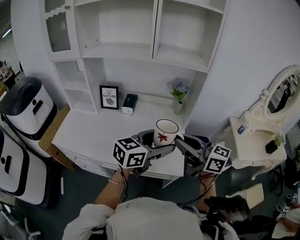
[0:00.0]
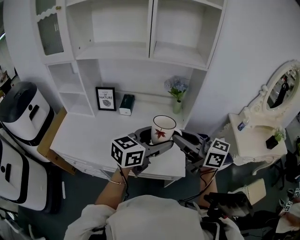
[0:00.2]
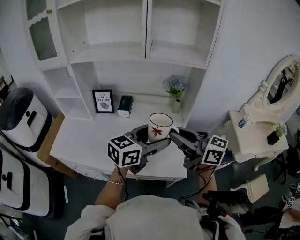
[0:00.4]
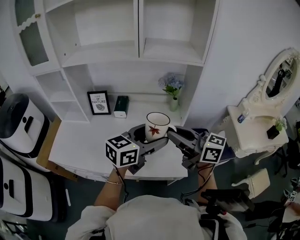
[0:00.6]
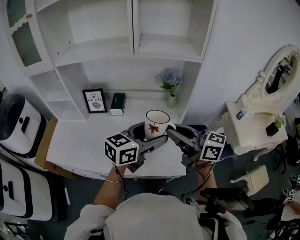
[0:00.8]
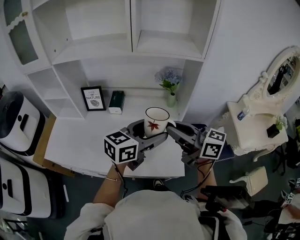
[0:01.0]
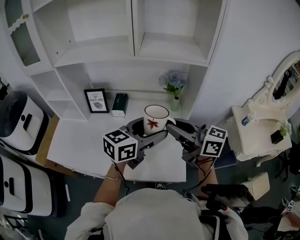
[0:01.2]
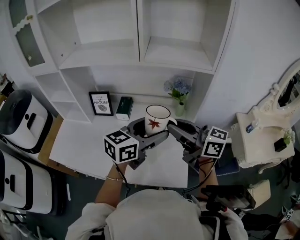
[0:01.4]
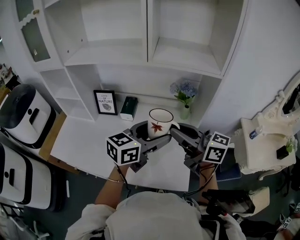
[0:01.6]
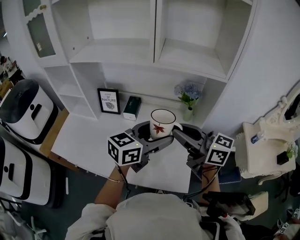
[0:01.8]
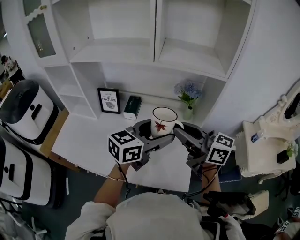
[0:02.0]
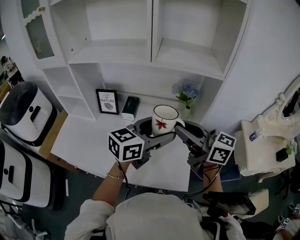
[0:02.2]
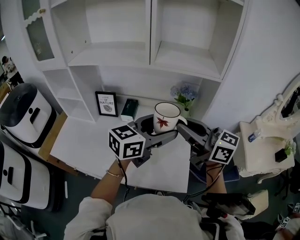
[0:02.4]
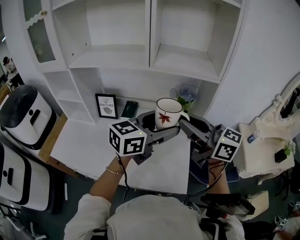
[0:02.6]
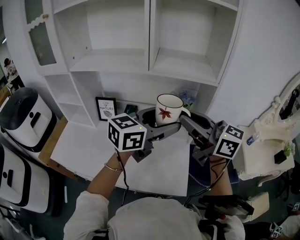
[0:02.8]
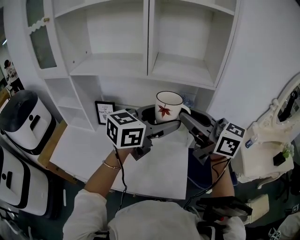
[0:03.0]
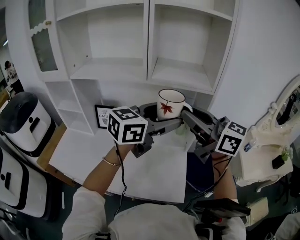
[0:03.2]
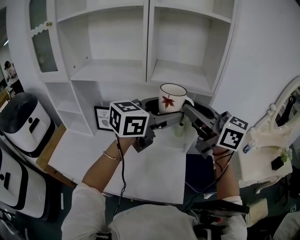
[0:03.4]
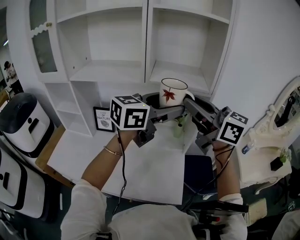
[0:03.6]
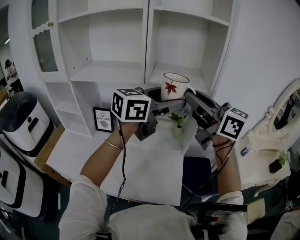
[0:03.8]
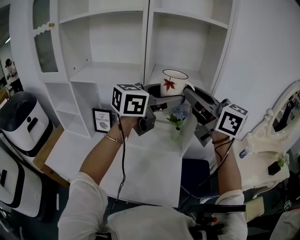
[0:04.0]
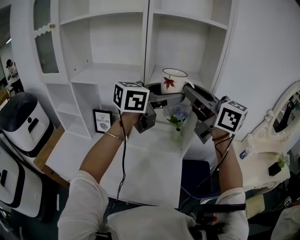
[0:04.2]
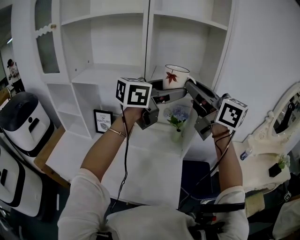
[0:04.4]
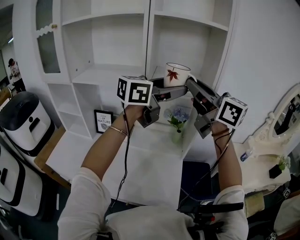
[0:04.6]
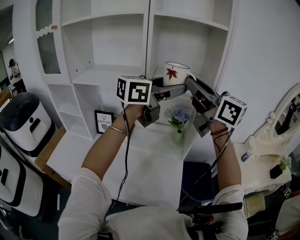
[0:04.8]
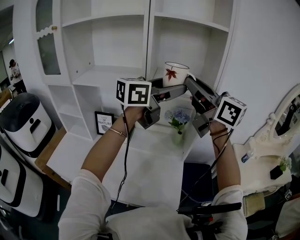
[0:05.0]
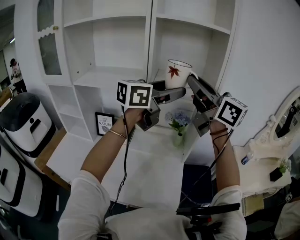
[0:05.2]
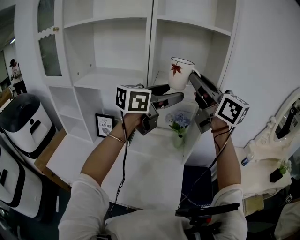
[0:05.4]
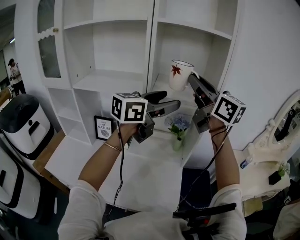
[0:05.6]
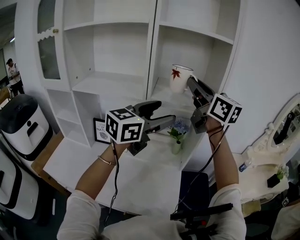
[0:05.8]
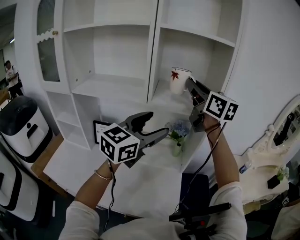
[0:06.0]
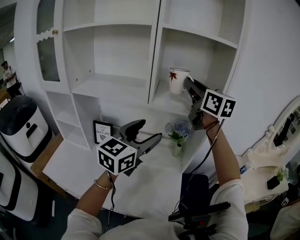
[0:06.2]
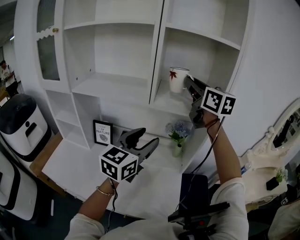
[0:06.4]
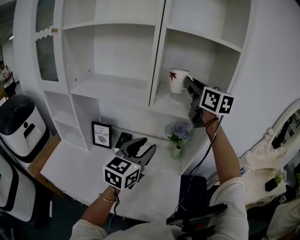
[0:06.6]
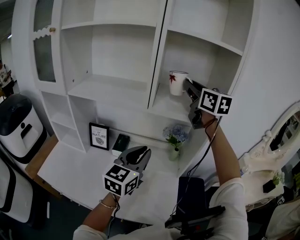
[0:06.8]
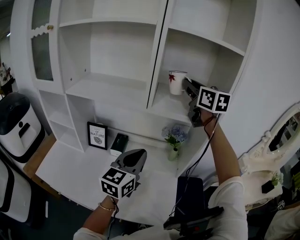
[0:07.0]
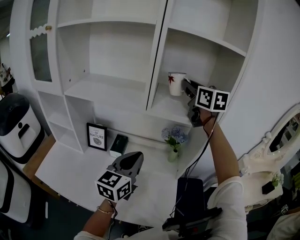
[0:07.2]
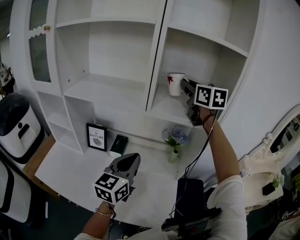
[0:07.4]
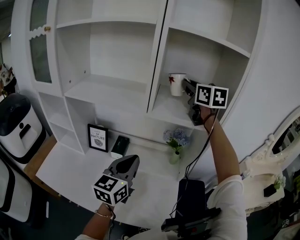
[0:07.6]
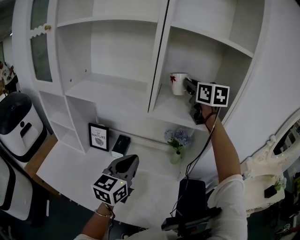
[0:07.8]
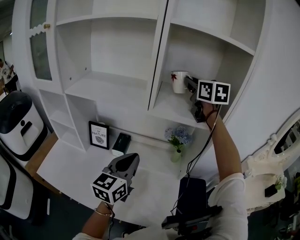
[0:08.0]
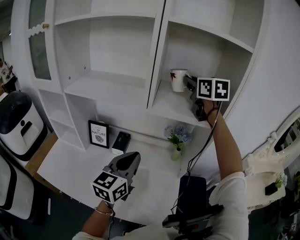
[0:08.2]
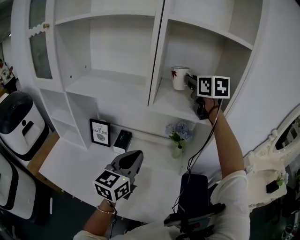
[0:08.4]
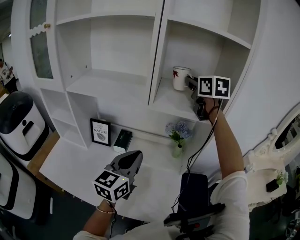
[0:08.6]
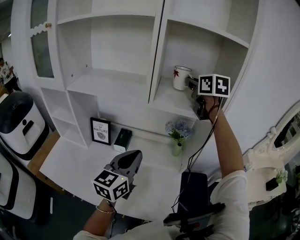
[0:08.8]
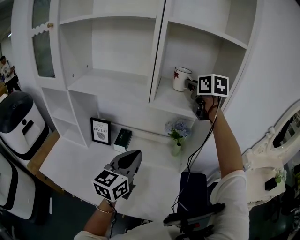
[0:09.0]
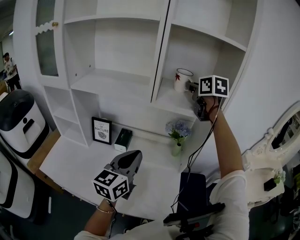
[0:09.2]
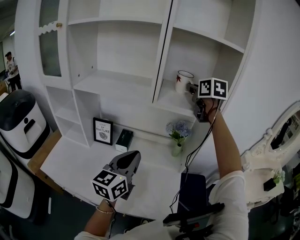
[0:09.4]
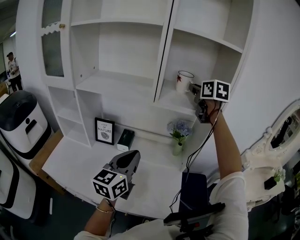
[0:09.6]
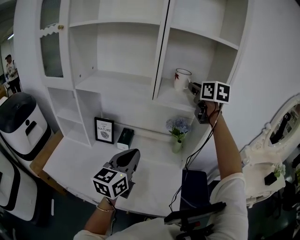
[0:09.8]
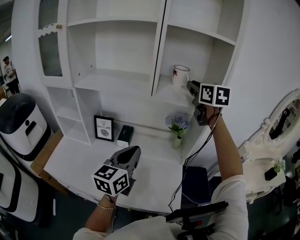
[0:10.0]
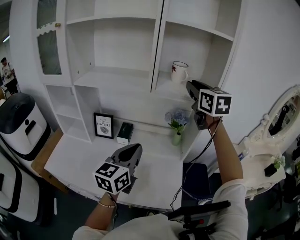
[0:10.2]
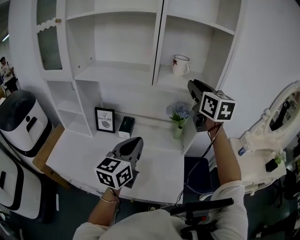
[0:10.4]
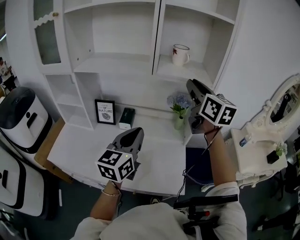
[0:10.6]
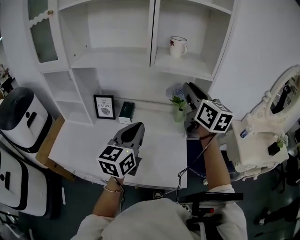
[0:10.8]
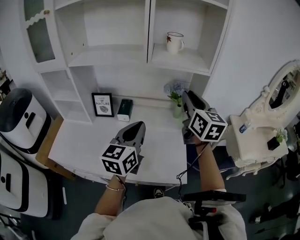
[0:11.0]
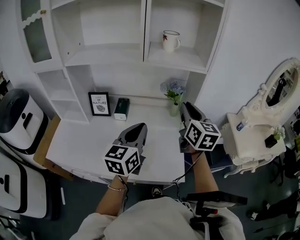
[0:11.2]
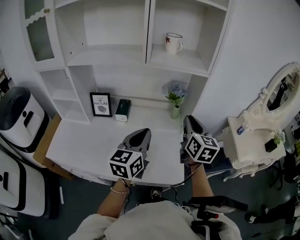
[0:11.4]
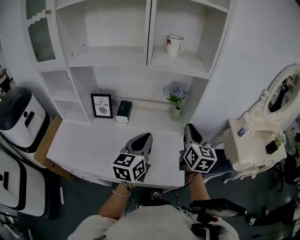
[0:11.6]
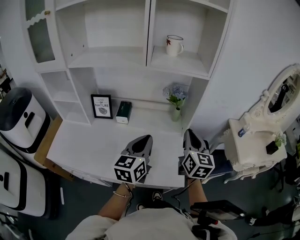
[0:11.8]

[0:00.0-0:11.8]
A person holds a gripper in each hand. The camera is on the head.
0:00.0 to 0:01.4: Both grippers travel together forward, roughly 15 cm.
0:01.4 to 0:03.0: The grippers both shift upward by some 10 cm.
0:03.0 to 0:04.4: Both grippers travel together upward and forward, approximately 15 cm.
0:04.4 to 0:06.0: The right gripper is displaced forward by roughly 10 cm. Meanwhile the left gripper is displaced downward and to the left by approximately 10 cm, and swivels roughly 20 degrees.
0:06.0 to 0:07.4: The left gripper shifts roughly 15 cm downward and to the left, turns by approximately 20 degrees, and closes its fingers, while the right gripper travels forward by approximately 10 cm.
0:07.4 to 0:08.8: The grippers make only small movements.
0:08.8 to 0:10.4: The right gripper heads backward, covering approximately 15 cm. The left gripper heads backward, covering some 5 cm.
0:10.4 to 0:11.8: The left gripper heads downward and to the right, covering about 10 cm. The right gripper travels downward and backward by approximately 25 cm.

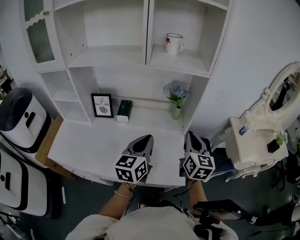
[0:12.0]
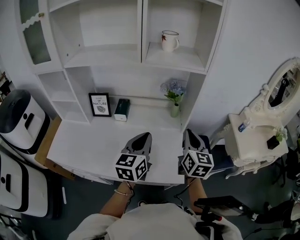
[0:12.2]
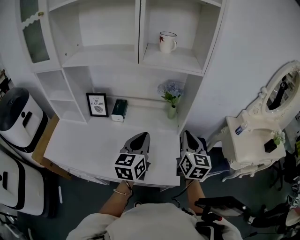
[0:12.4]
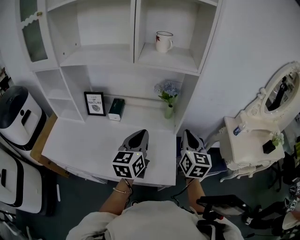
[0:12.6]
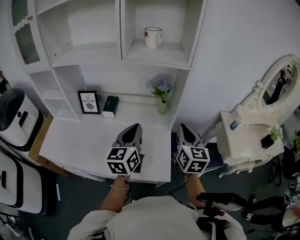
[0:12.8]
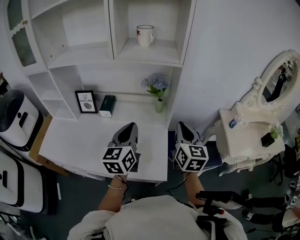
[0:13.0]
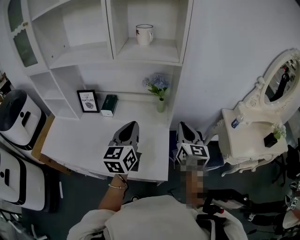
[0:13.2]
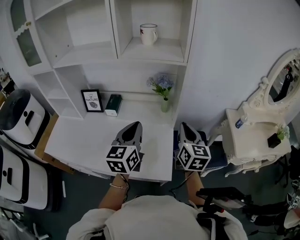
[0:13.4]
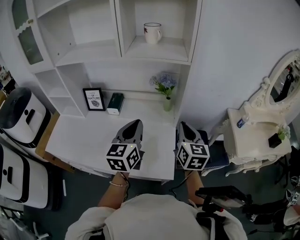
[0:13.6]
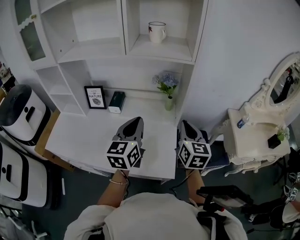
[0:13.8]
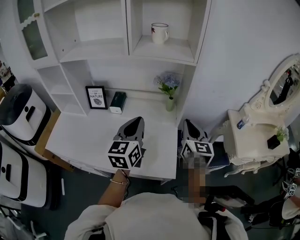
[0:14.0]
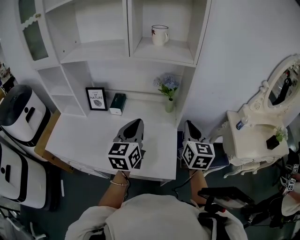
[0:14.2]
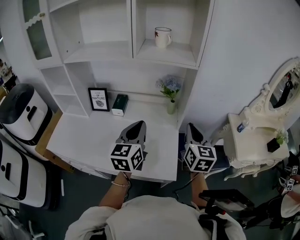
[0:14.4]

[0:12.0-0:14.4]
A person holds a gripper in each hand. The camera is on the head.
0:12.0 to 0:13.2: Both grippers travel together to the right, approximately 5 cm.
0:13.2 to 0:14.4: There are only small adjustments of the grippers.

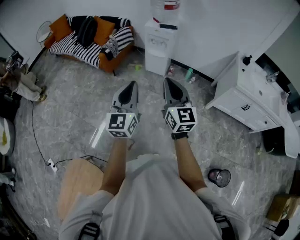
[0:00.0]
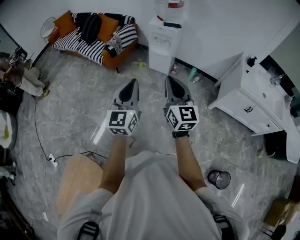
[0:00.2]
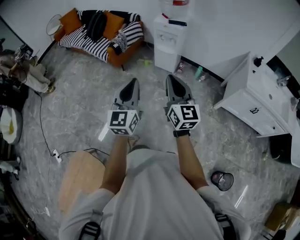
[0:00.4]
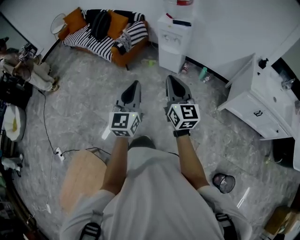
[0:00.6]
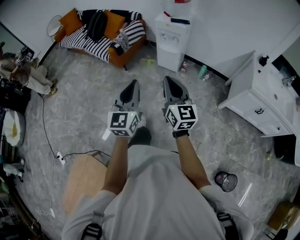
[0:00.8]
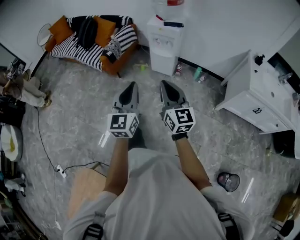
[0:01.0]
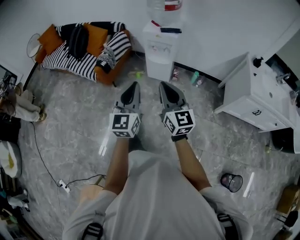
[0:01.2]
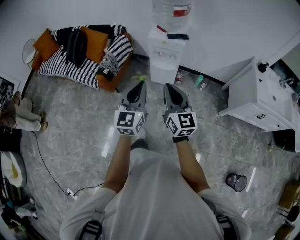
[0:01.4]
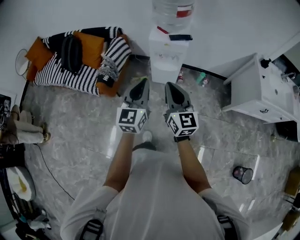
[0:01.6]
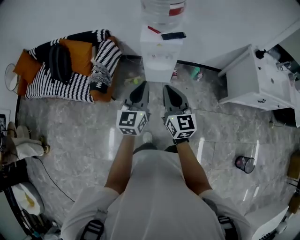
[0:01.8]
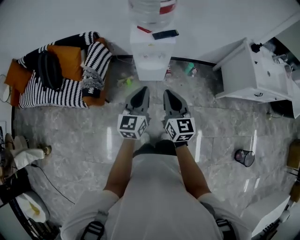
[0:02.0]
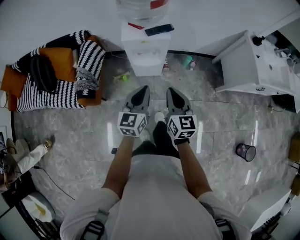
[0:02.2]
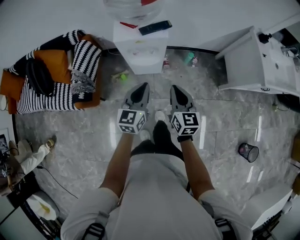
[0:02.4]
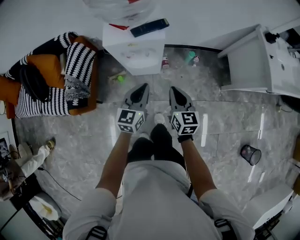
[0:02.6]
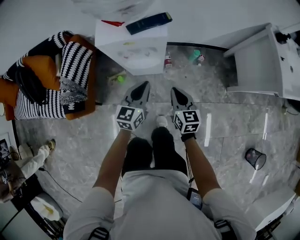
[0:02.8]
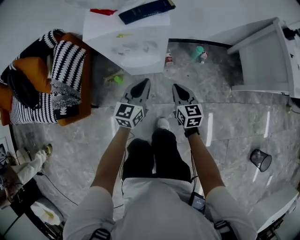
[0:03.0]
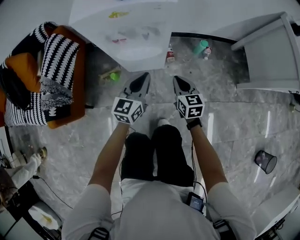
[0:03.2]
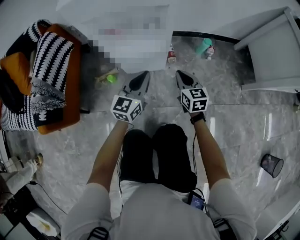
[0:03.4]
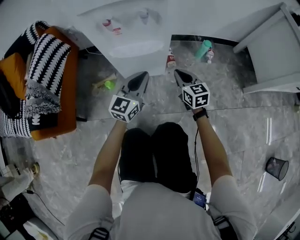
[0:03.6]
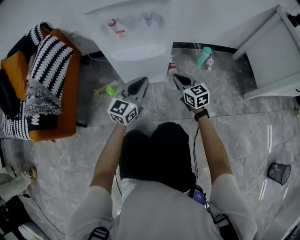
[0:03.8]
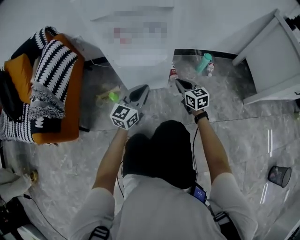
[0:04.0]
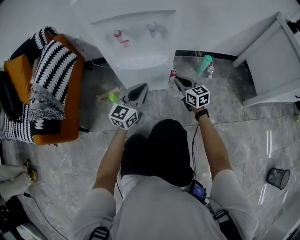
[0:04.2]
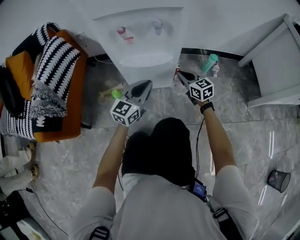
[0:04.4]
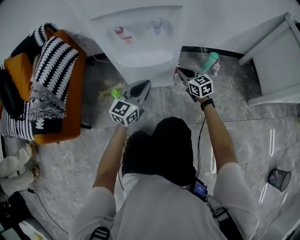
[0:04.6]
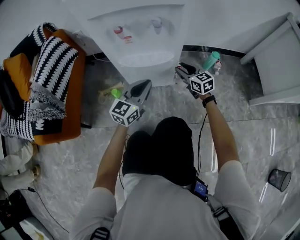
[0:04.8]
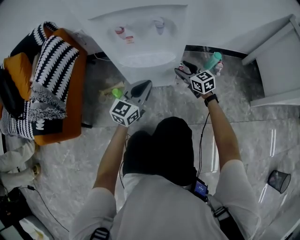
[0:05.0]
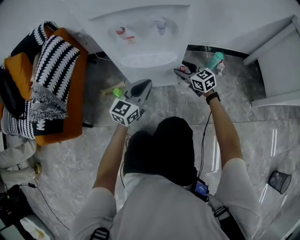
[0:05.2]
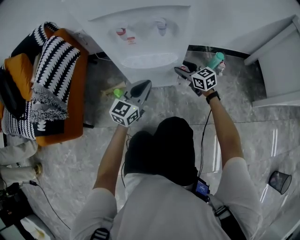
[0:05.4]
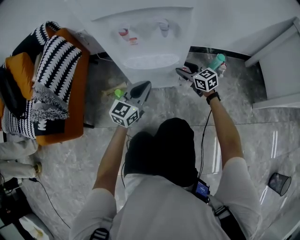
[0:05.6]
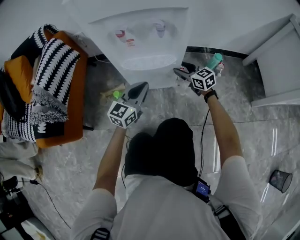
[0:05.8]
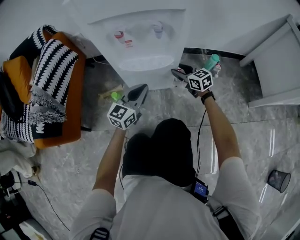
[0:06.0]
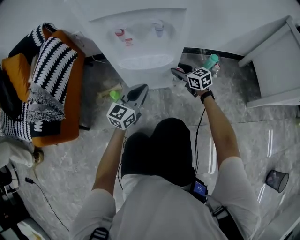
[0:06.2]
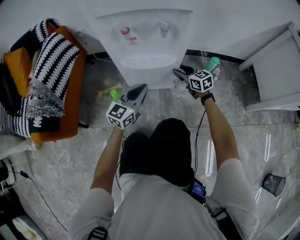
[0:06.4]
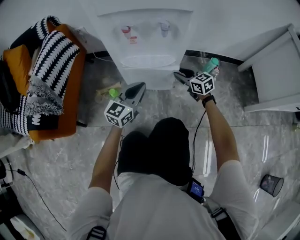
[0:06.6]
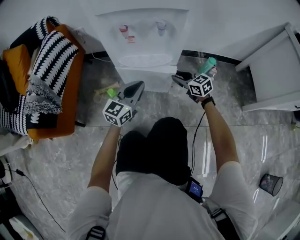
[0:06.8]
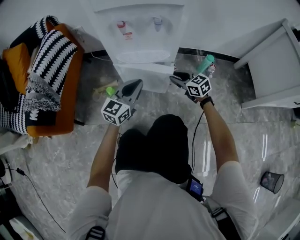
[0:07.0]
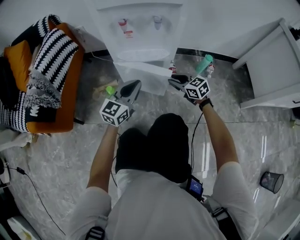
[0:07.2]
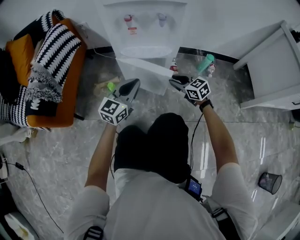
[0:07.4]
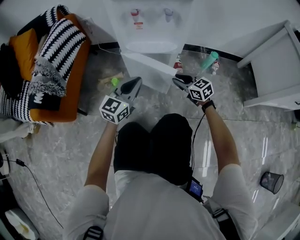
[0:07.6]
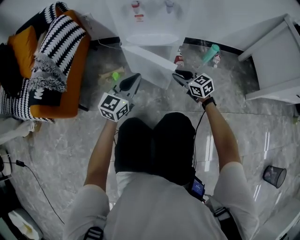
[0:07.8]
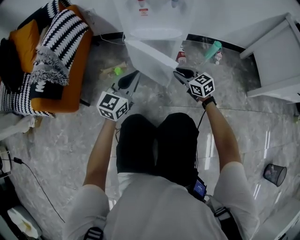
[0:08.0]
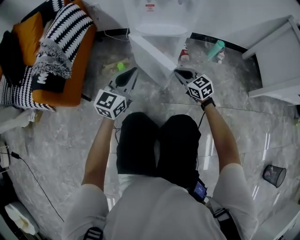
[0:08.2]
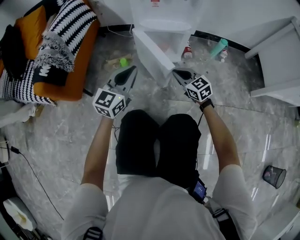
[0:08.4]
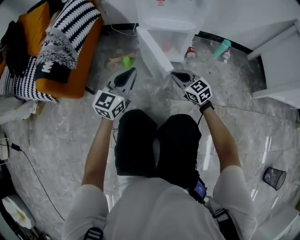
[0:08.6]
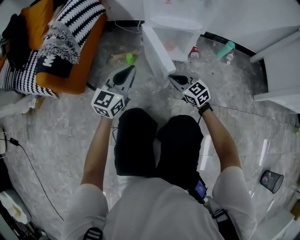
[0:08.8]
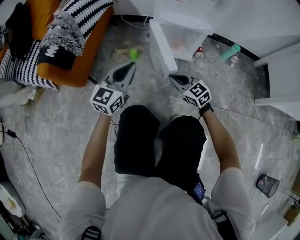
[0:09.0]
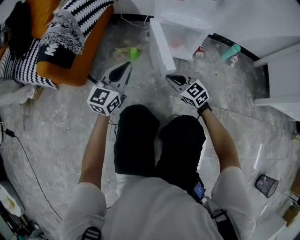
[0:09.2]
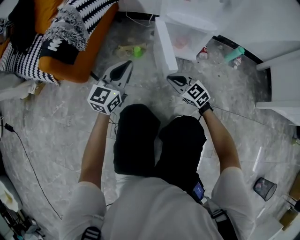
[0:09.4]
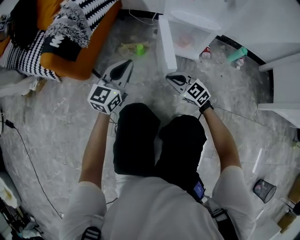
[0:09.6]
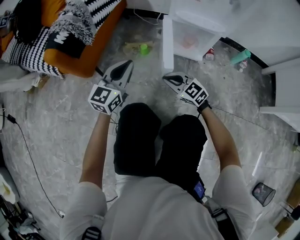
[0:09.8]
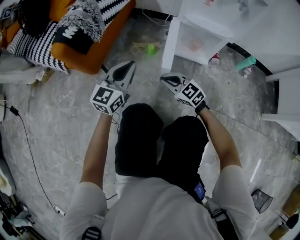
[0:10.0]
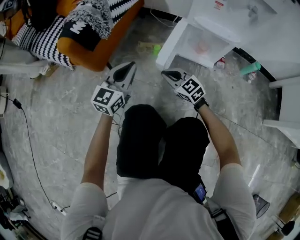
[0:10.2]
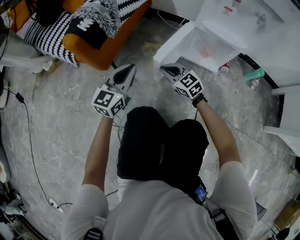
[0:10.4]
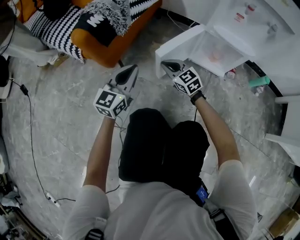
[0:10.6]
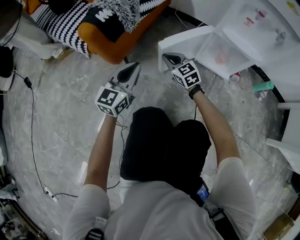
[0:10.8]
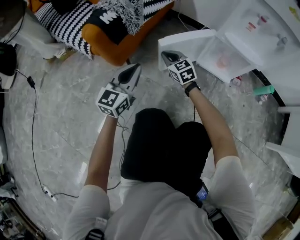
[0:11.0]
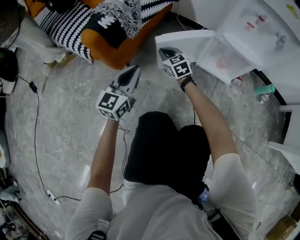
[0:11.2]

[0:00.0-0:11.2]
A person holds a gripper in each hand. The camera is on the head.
0:00.0 to 0:01.6: The two grippers travel together, forward, roughly 40 cm.
0:01.6 to 0:03.2: The grippers both shift downward and forward by approximately 60 cm. The right gripper swivels some 30 degrees, while the left gripper changes its angle by approximately 30 degrees.
0:03.2 to 0:04.8: The right gripper heads downward and forward, covering roughly 20 cm, swivels roughly 20 degrees, and opens up. The left gripper travels downward by some 15 cm.
0:04.8 to 0:06.4: There are only small adjustments of the grippers.
0:06.4 to 0:08.0: The right gripper goes roughly 15 cm backward. The left gripper travels backward and to the left by about 10 cm.
0:08.0 to 0:09.6: The left gripper shifts approximately 15 cm to the left; the right gripper travels to the left and backward by some 20 cm, rotates approximately 30 degrees, and closes its fingers.
0:09.6 to 0:11.2: The left gripper goes approximately 15 cm to the left. Meanwhile the right gripper travels forward and to the left by approximately 30 cm.
